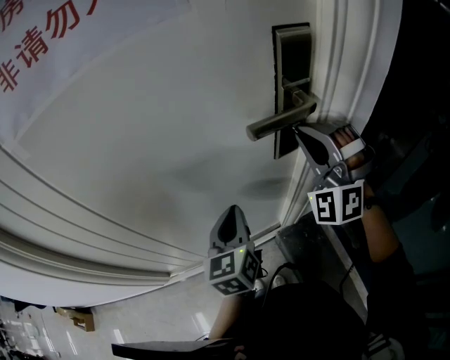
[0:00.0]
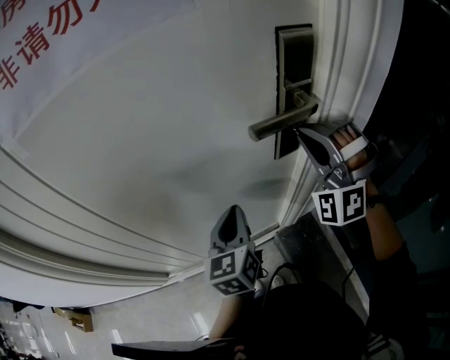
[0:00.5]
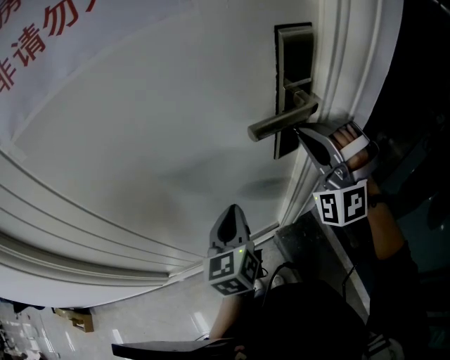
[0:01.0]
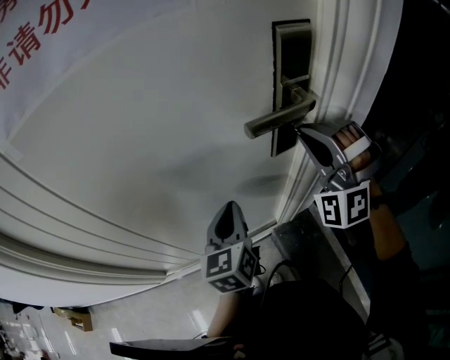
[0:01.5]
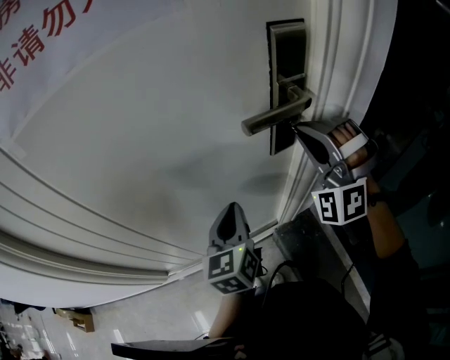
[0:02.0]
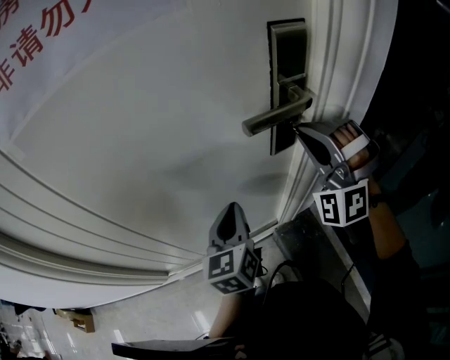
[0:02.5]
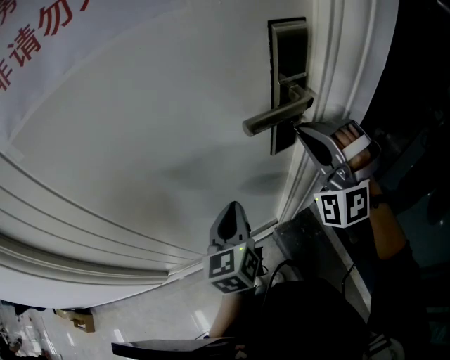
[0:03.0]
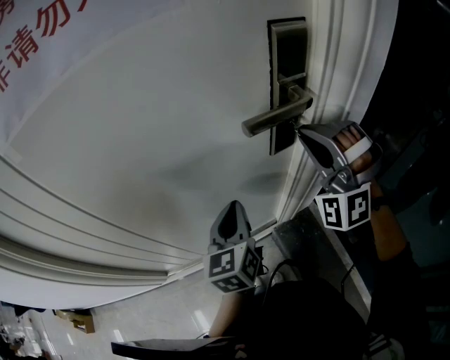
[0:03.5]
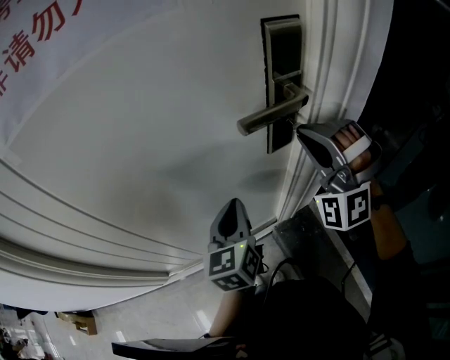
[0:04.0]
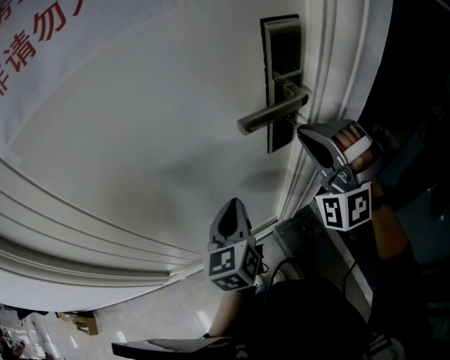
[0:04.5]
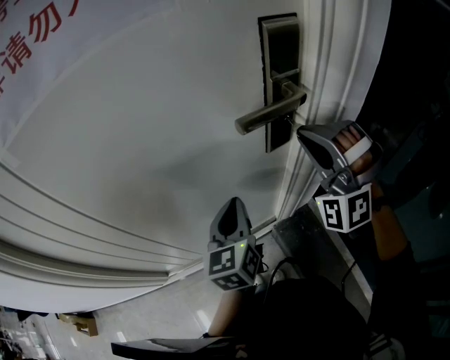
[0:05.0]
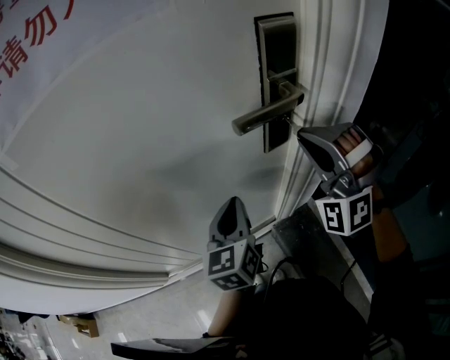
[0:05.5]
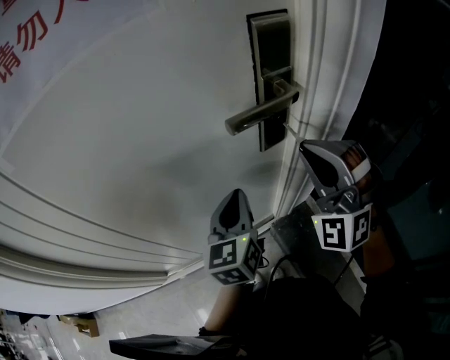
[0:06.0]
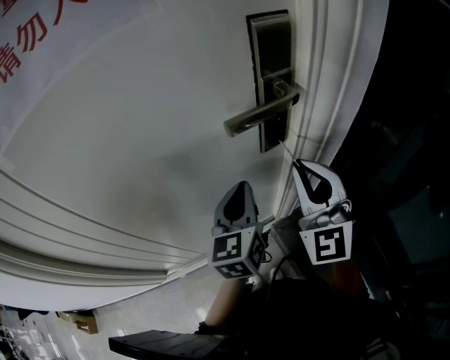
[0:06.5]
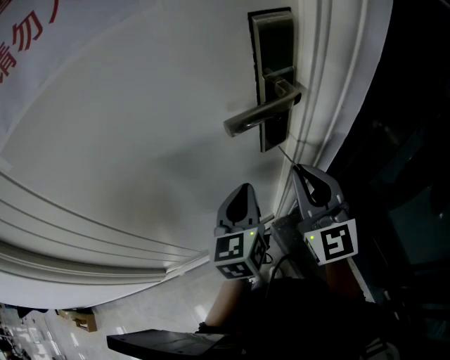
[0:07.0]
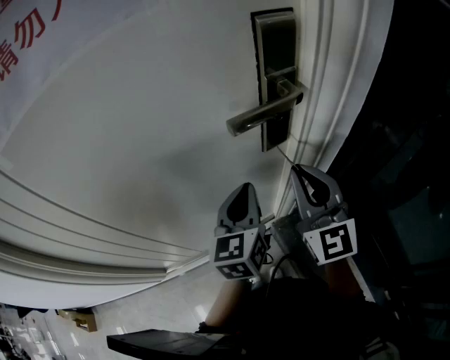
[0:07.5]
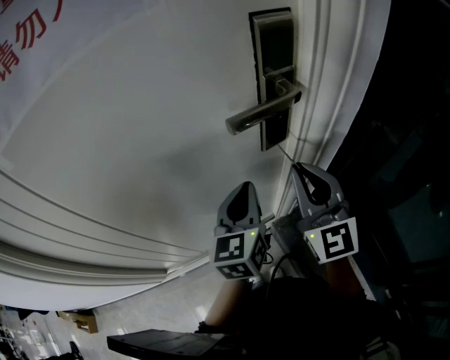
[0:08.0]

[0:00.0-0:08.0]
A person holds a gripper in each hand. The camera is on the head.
0:00.0 to 0:02.0: The grippers move only a little.
0:02.0 to 0:04.0: Both grippers stay put.
0:04.0 to 0:06.0: The grippers make only small movements.
0:06.0 to 0:08.0: The right gripper rolls clockwise, seen from behind, by approximately 60 degrees.

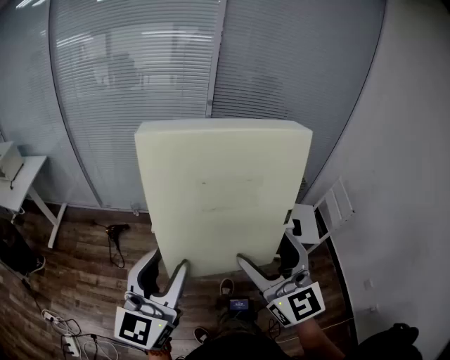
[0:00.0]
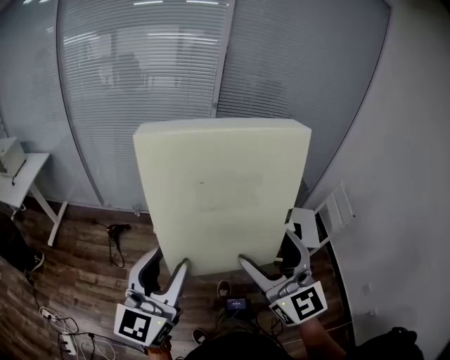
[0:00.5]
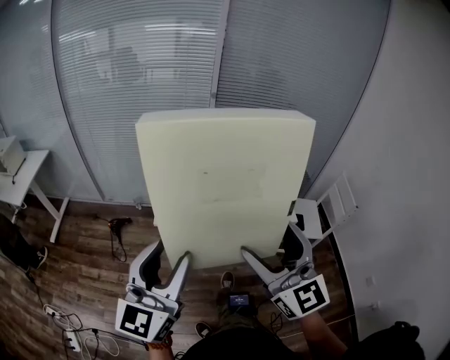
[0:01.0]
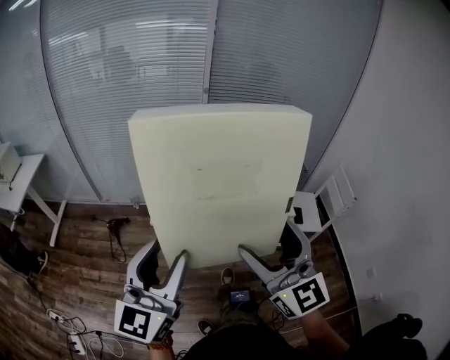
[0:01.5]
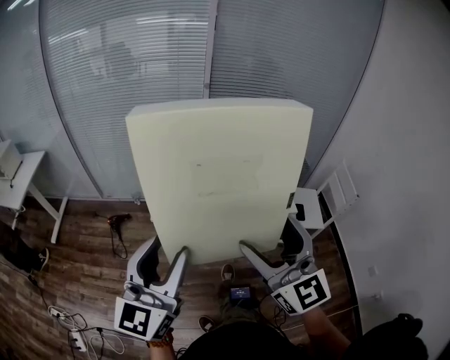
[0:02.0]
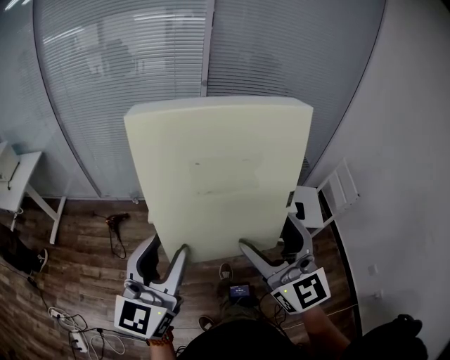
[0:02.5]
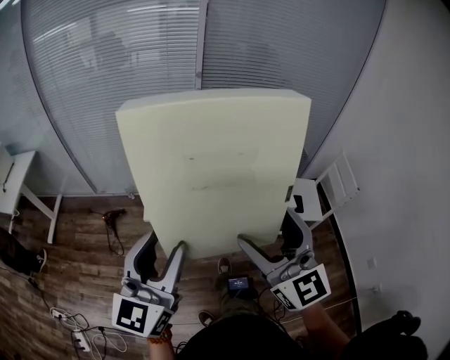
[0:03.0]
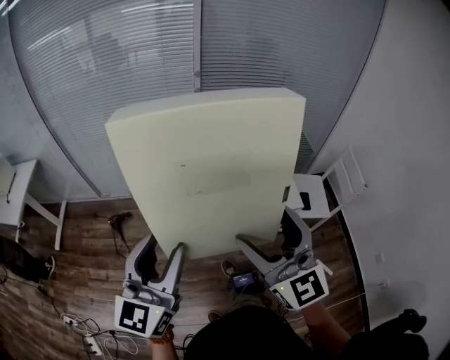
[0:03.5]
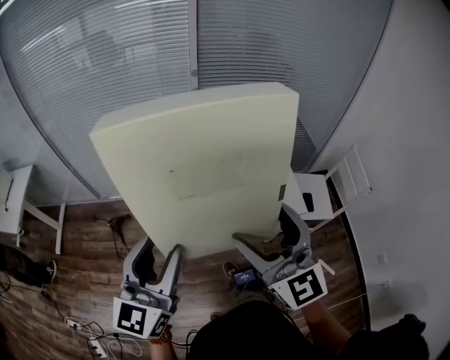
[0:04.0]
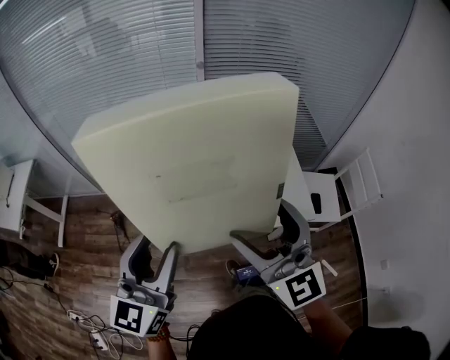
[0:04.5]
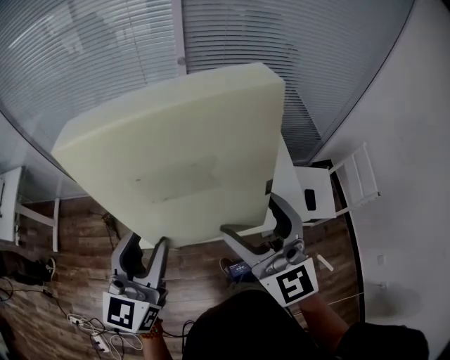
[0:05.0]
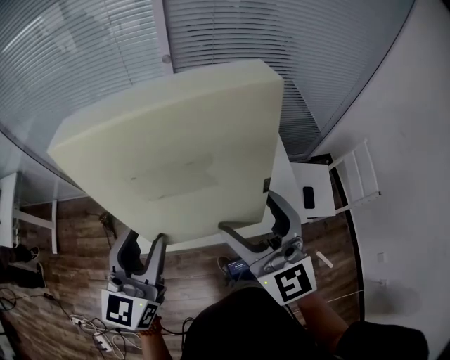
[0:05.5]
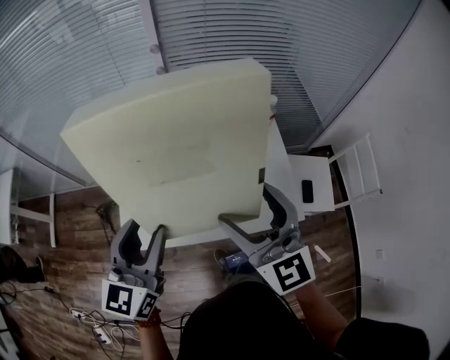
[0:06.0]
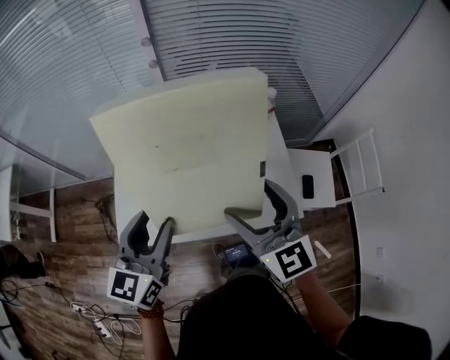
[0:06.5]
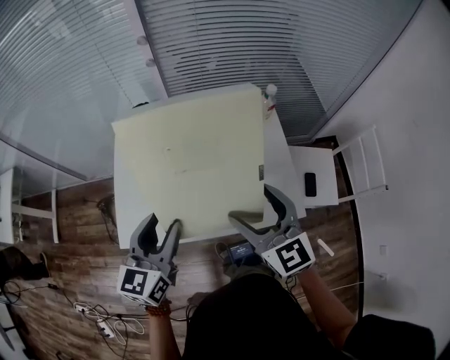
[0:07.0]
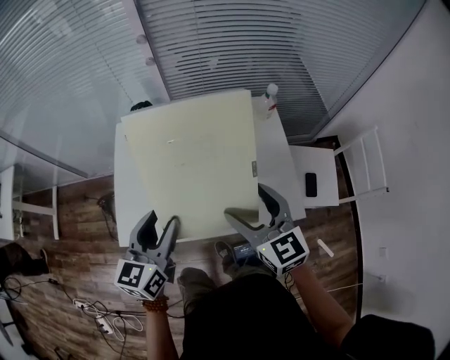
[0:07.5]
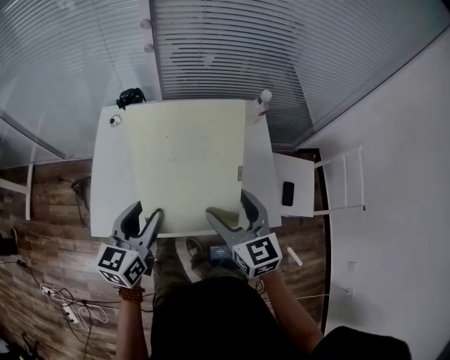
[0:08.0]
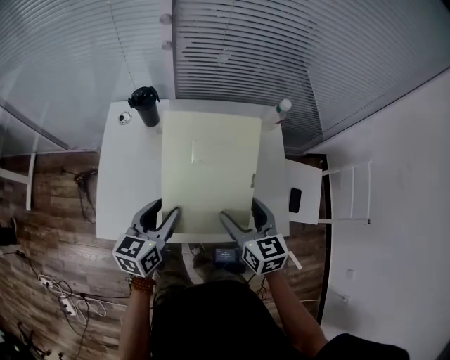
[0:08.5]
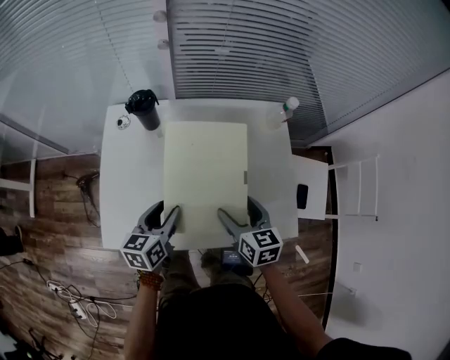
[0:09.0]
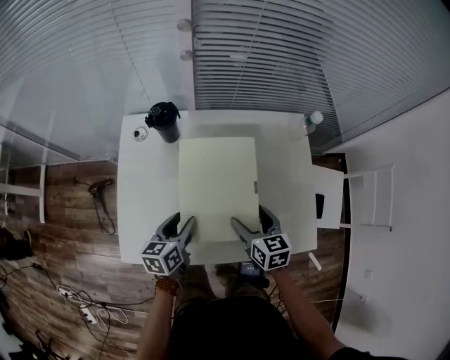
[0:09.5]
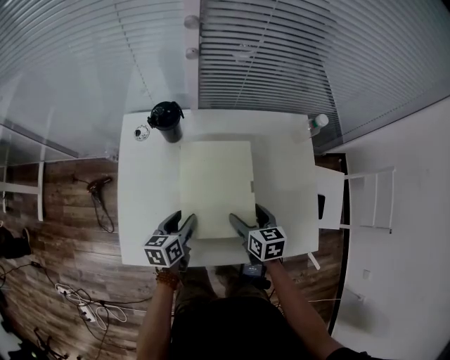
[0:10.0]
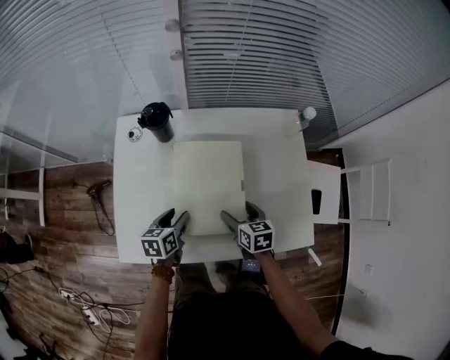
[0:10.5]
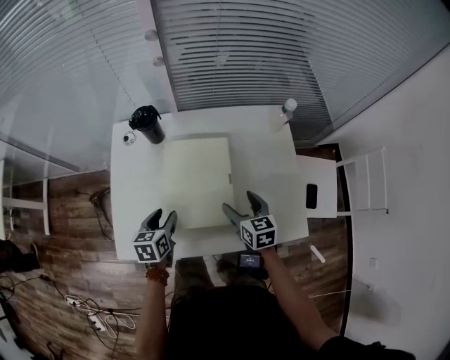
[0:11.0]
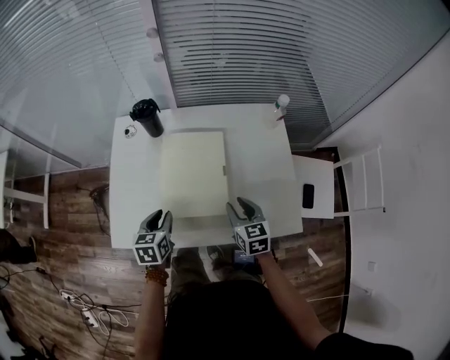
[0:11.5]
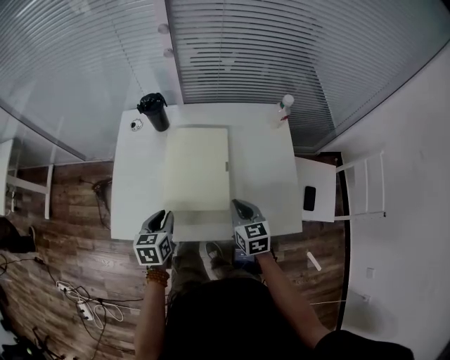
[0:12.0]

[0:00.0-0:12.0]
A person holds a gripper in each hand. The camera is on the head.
0:00.0 to 0:02.0: There are only small adjustments of the grippers.
0:02.0 to 0:04.0: Both grippers travel together forward, some 20 cm.
0:04.0 to 0:06.0: The right gripper travels forward, to the right and downward by about 25 cm; the left gripper shifts about 25 cm forward and to the right.
0:06.0 to 0:08.0: Both grippers move downward, approximately 15 cm. The right gripper changes its angle by roughly 20 degrees.
0:08.0 to 0:10.0: The two grippers go some 25 cm downward and forward. The right gripper changes its angle by roughly 30 degrees; the left gripper changes its angle by approximately 30 degrees.
0:10.0 to 0:12.0: The left gripper heads backward and upward, covering some 10 cm, changes its angle by roughly 20 degrees, and closes its fingers, while the right gripper moves backward and to the right, approximately 10 cm, and closes up.

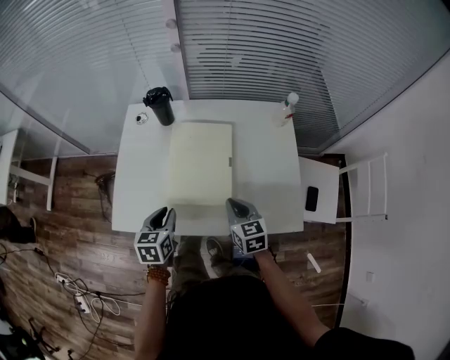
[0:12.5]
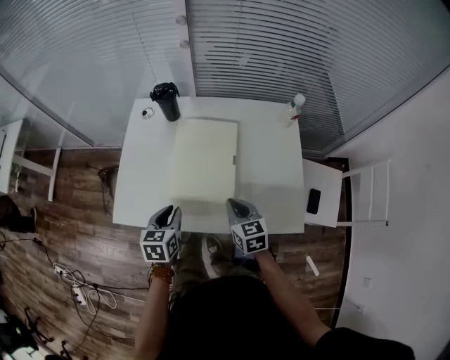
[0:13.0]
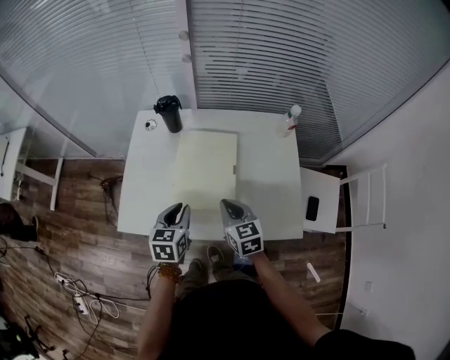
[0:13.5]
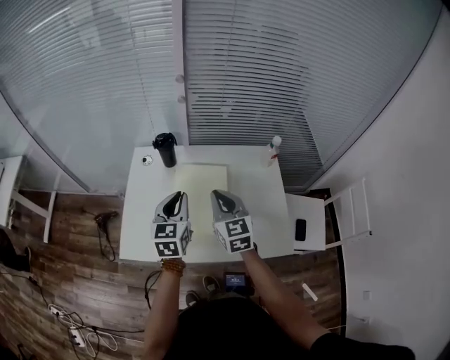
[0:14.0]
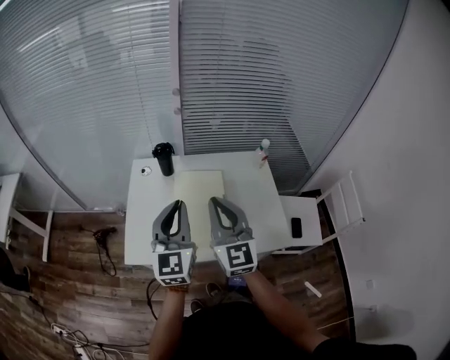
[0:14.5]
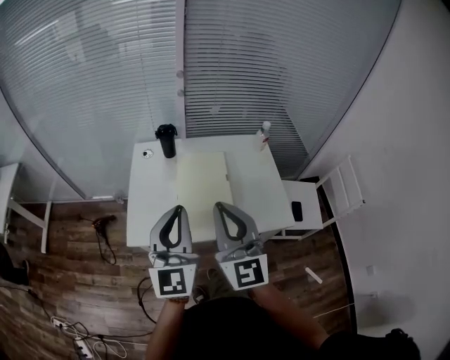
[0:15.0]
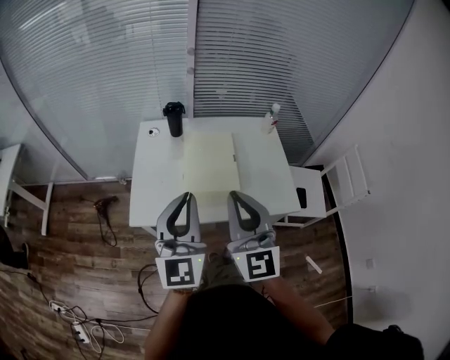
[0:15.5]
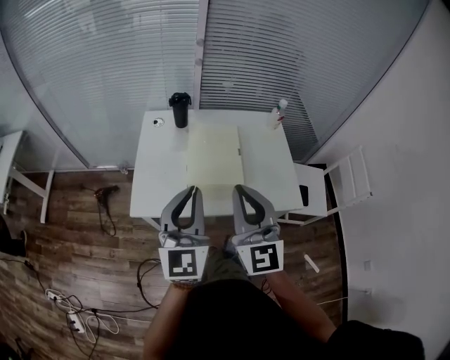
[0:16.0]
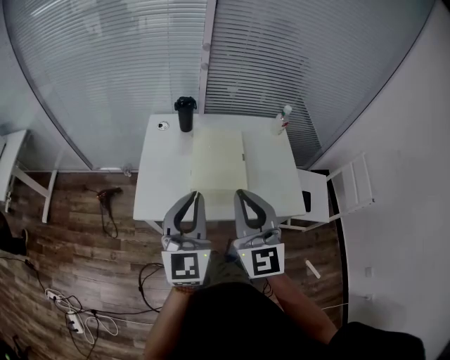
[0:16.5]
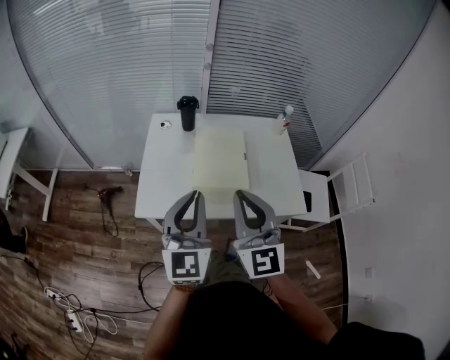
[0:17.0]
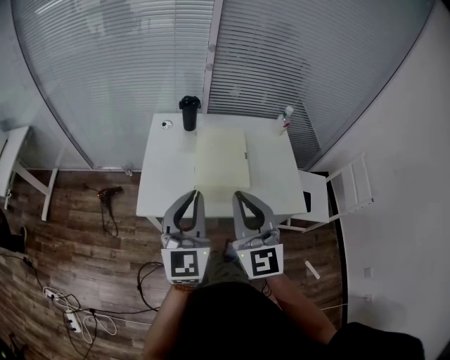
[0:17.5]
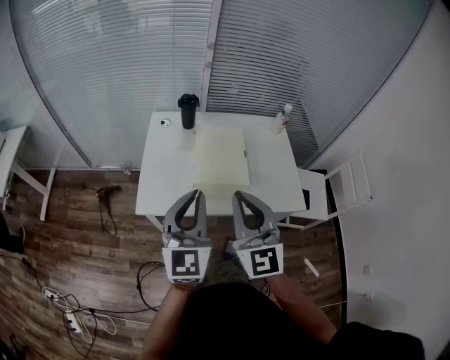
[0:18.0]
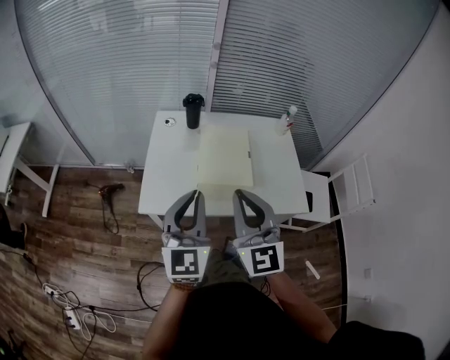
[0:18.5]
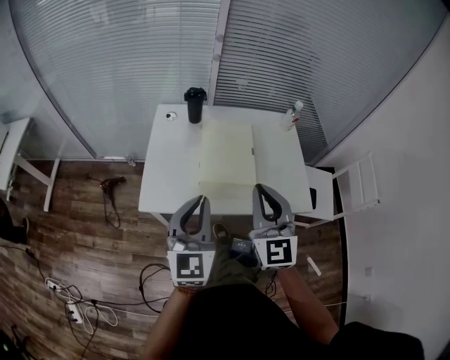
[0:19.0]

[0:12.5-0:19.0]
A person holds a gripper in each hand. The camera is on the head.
0:12.5 to 0:14.5: Both grippers travel together upward, roughly 30 cm. The left gripper angles its fingers upward, by approximately 40 degrees; the right gripper points its fingers roughly 40 degrees further upward.
0:14.5 to 0:17.0: Both grippers move backward, approximately 15 cm.
0:17.0 to 0:19.0: The right gripper changes place by approximately 5 cm.
